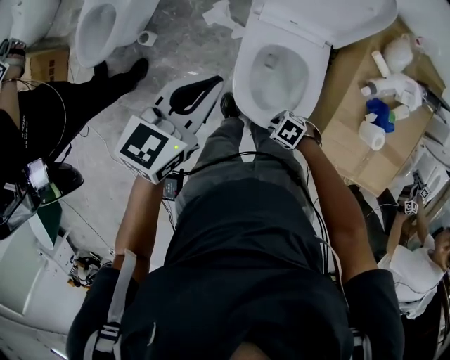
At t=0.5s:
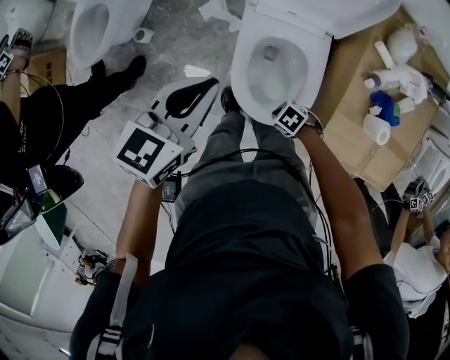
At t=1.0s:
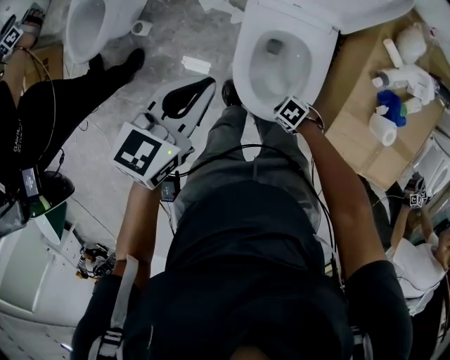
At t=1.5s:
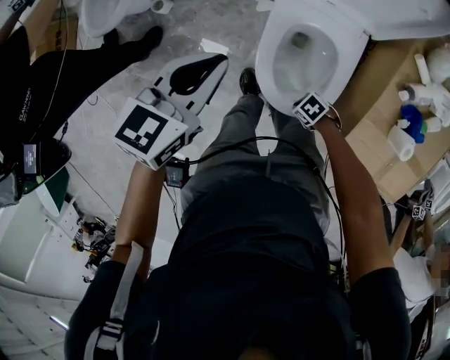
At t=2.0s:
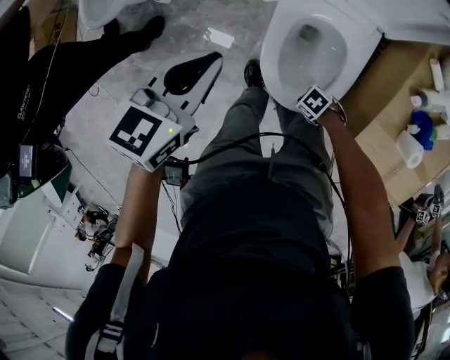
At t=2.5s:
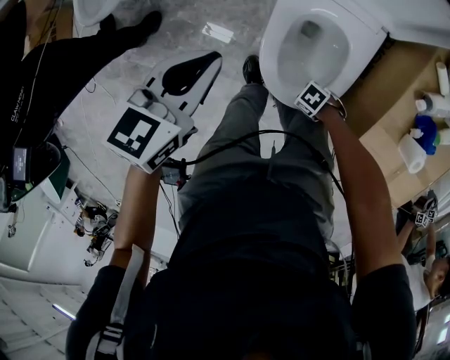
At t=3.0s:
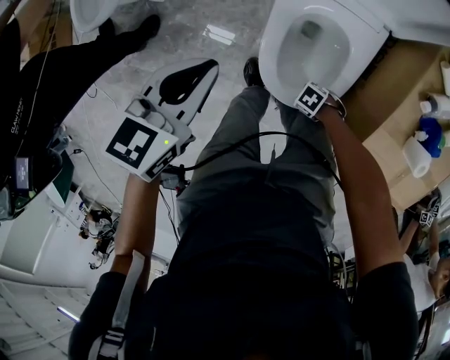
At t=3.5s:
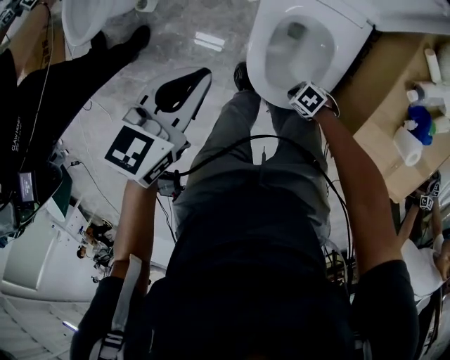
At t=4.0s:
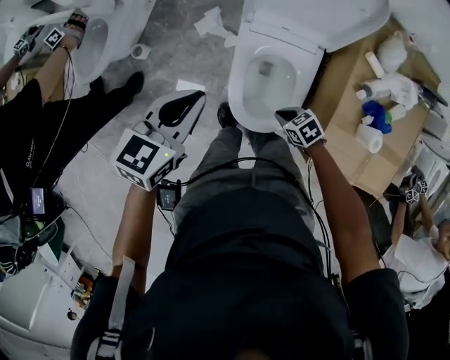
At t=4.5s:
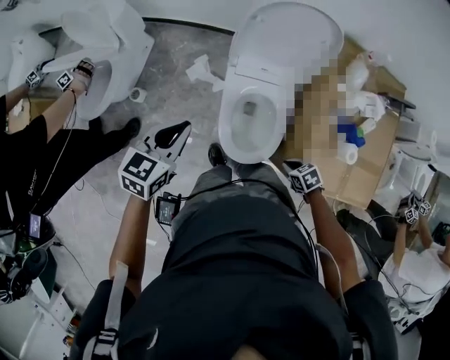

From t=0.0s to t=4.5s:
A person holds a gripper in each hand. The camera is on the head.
From t=0.0s to t=2.0s: The grippers both shift downward by approximately 15 cm. The right gripper closes up.
From t=2.0s to t=4.5s: The left gripper shifts roughly 10 cm upward. Meanwhile the right gripper travels upward by some 20 cm, and turns by approximately 40 degrees.

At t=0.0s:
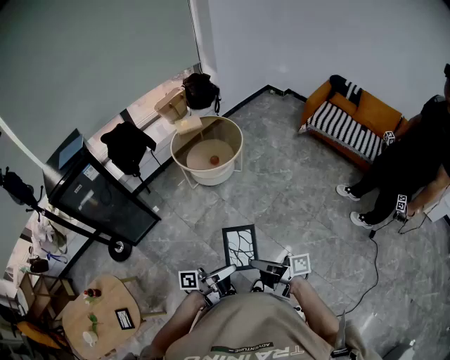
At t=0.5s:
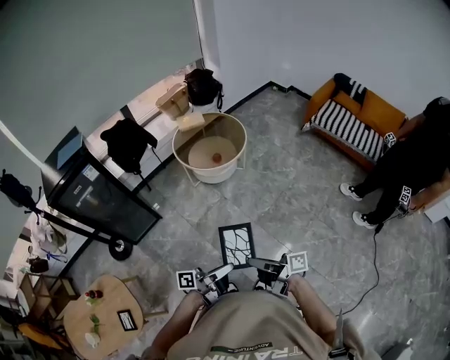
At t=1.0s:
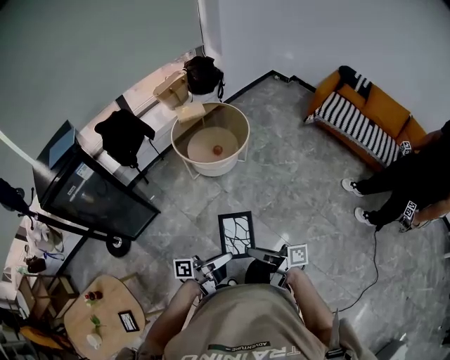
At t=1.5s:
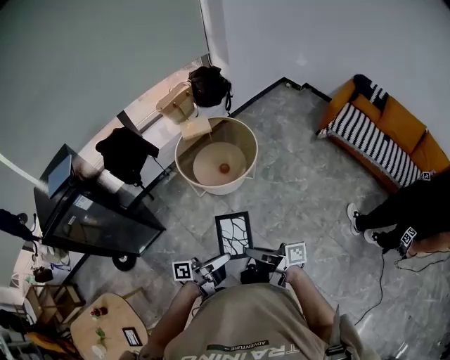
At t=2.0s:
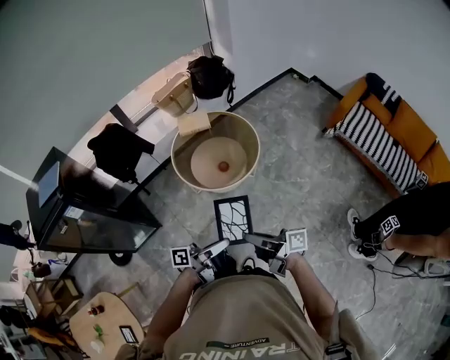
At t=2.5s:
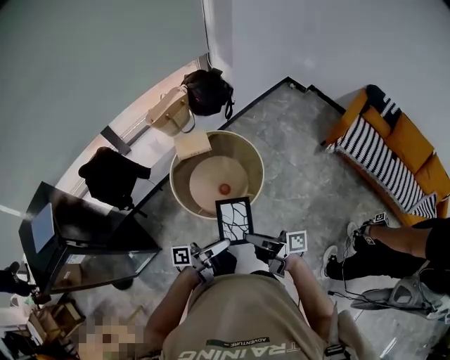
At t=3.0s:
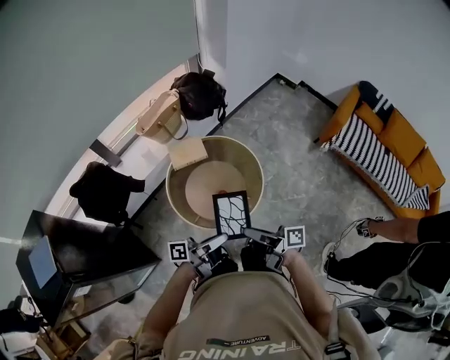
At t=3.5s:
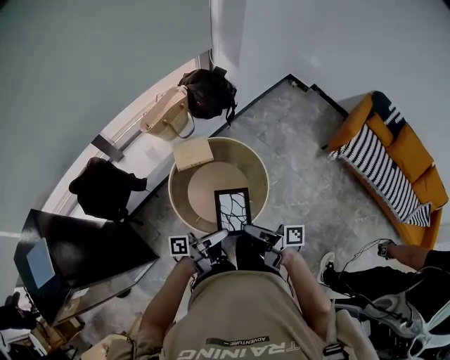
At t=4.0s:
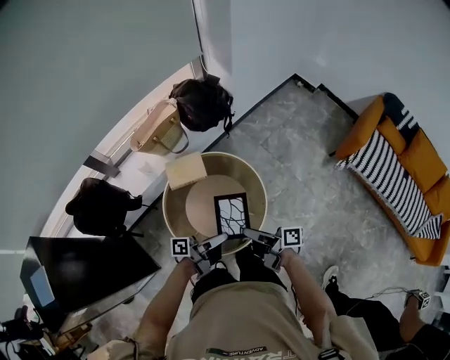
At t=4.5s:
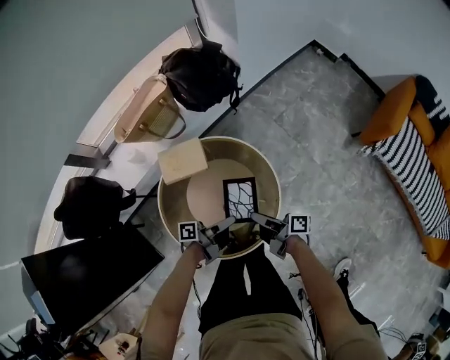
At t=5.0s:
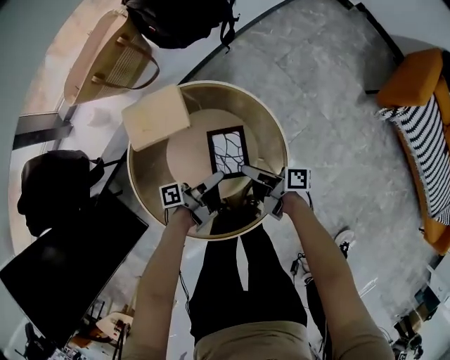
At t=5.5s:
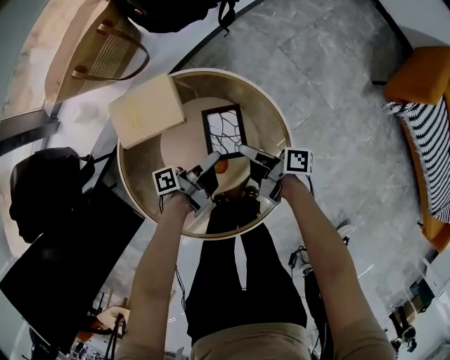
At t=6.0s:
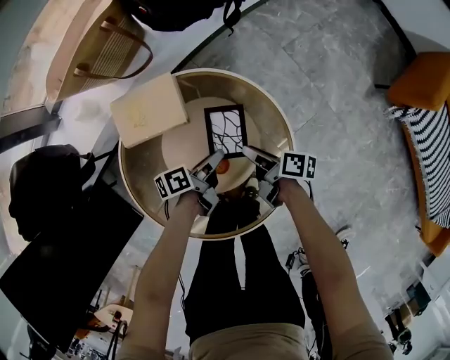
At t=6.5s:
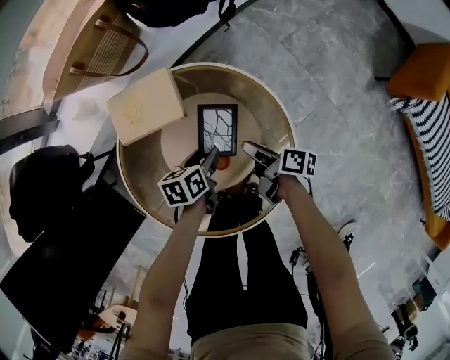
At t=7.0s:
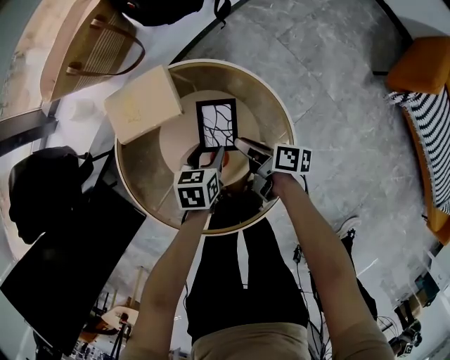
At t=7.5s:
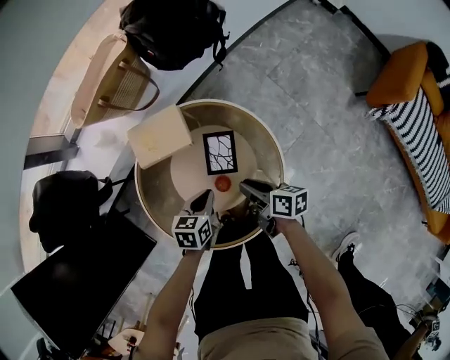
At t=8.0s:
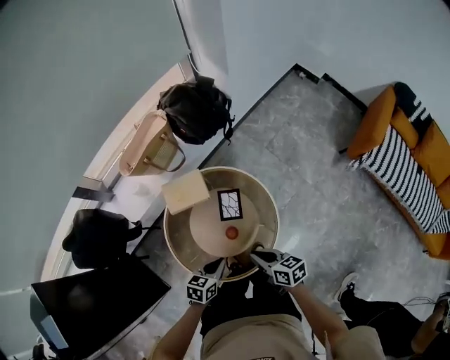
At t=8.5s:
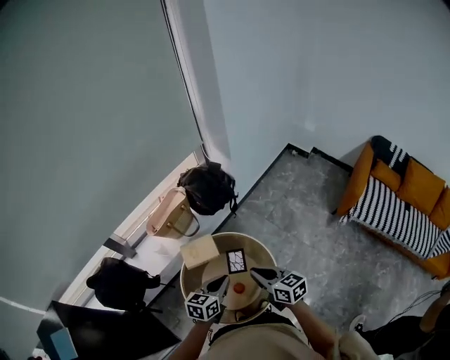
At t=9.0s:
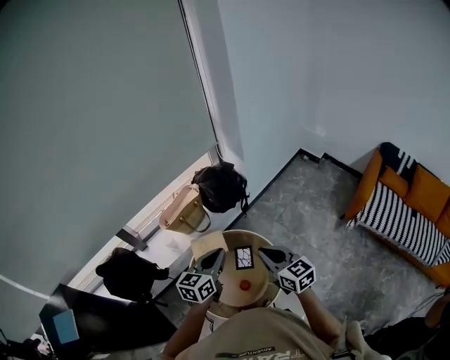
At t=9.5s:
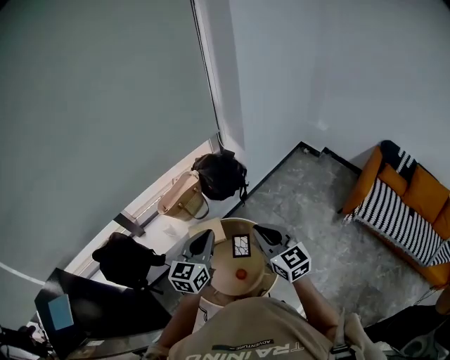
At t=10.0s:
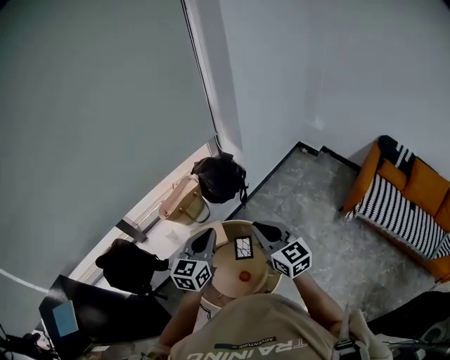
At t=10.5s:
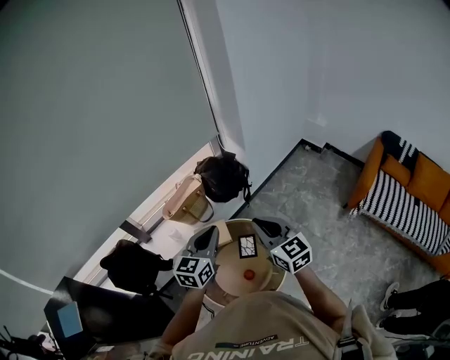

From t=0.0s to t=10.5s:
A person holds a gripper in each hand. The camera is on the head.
From t=0.0s to t=2.0s: The two grippers travel together, forward, roughly 40 cm.
From t=2.0s to t=4.0s: The pair of grippers is taken forward, approximately 40 cm.
From t=4.0s to t=6.5s: Both grippers move downward and forward, approximately 40 cm. The left gripper angles its fingers downward, by approximately 60 degrees, and opens, while the right gripper turns by about 30 degrees.
From t=6.5s to t=8.5s: Both grippers move upward, some 50 cm. The left gripper turns by approximately 40 degrees, and closes. Meanwhile the right gripper rolls counterclockwise, seen from behind, by some 60 degrees.
From t=8.5s to t=10.5s: Both grippers move upward, roughly 15 cm. The right gripper rotates about 30 degrees. The left gripper turns by about 30 degrees.

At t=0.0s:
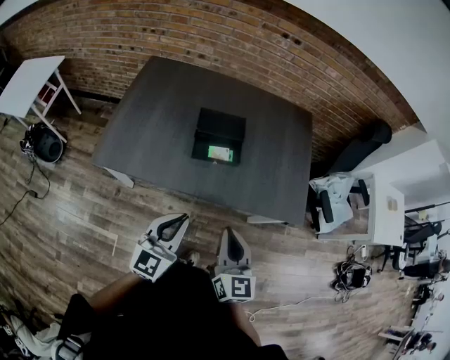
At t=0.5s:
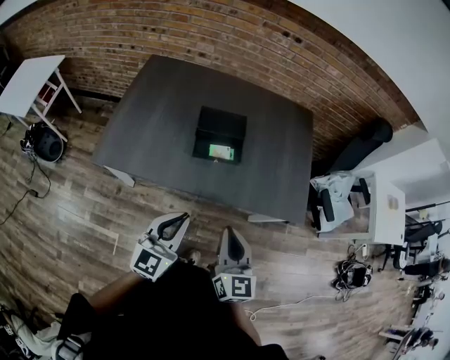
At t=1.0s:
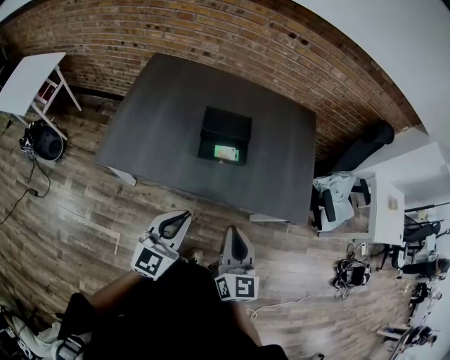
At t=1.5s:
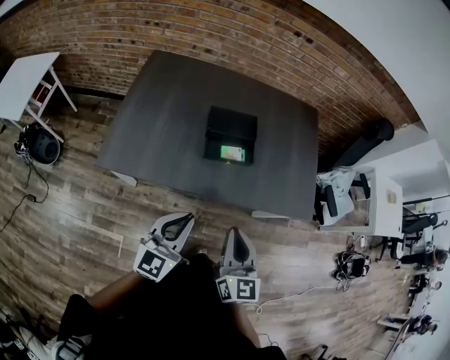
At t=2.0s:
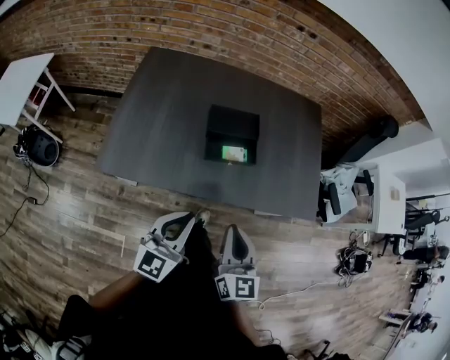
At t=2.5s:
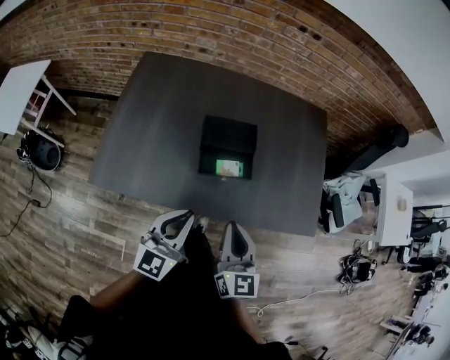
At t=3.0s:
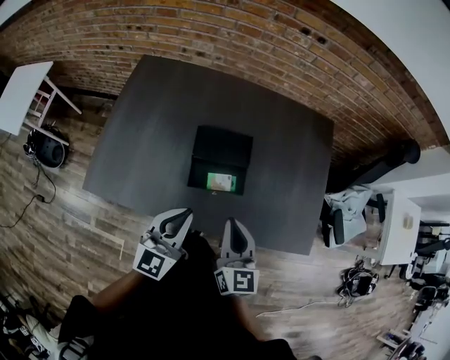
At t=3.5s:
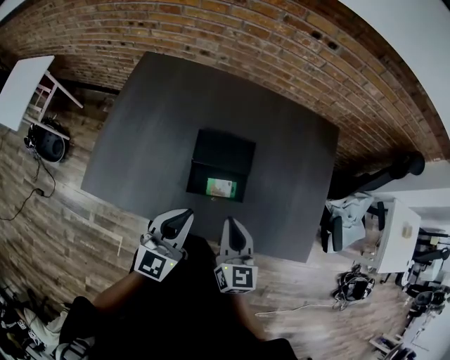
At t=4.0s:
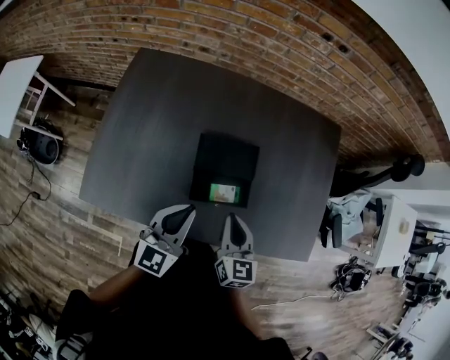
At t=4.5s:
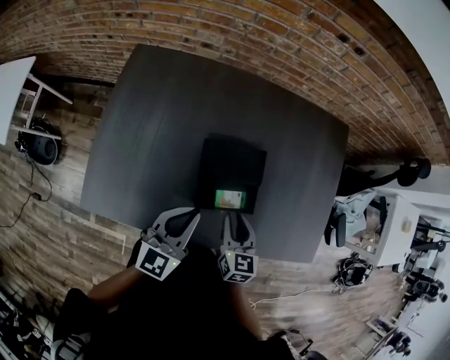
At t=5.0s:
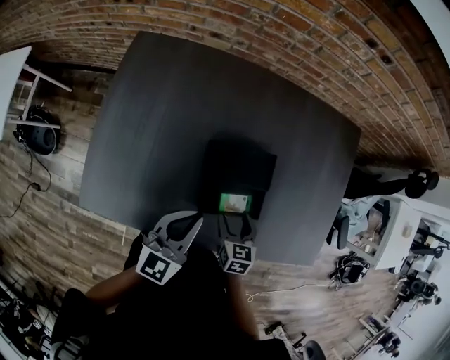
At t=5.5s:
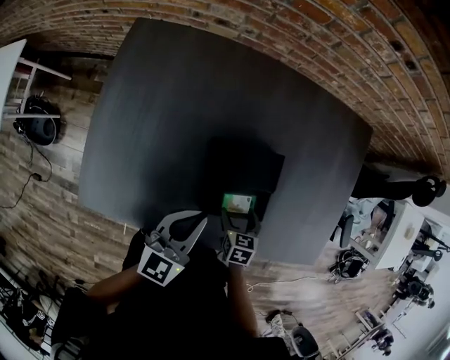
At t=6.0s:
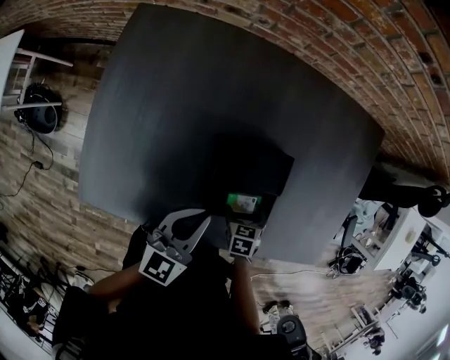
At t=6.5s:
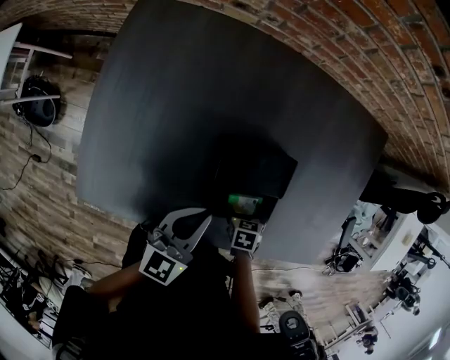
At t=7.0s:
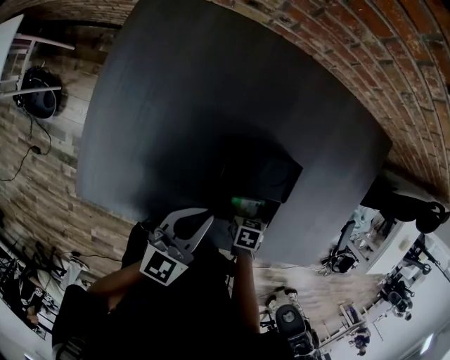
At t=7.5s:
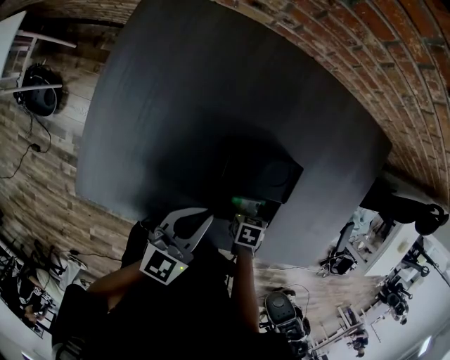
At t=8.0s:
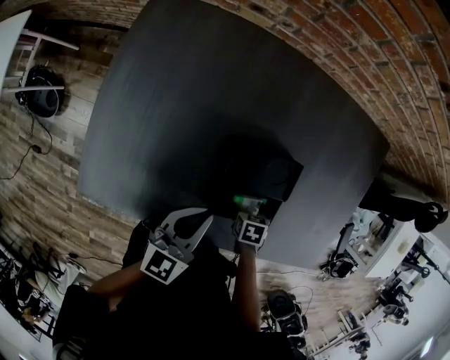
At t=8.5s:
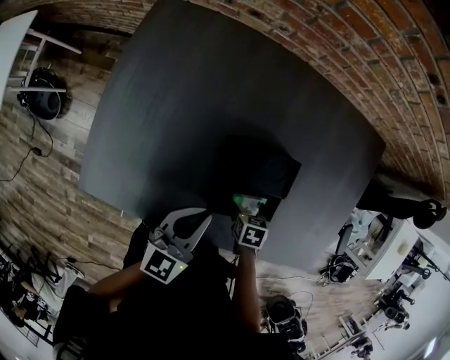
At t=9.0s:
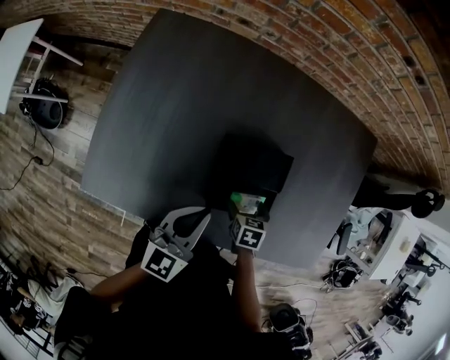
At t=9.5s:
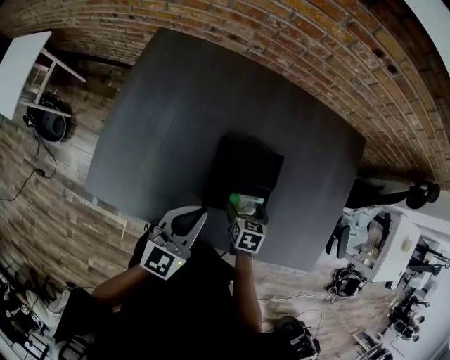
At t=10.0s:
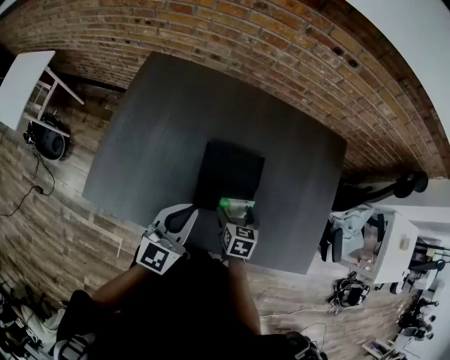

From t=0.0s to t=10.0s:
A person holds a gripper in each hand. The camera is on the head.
From t=0.0s to t=2.0s: The two grippers go some 10 cm to the left.
From t=2.0s to t=4.0s: The two grippers go roughly 25 cm forward.
From t=4.0s to t=6.0s: The left gripper moves forward and downward, about 15 cm. Meanwhile the right gripper heads downward, covering some 25 cm, angles its fingers downward, by about 50 degrees, and opens its fingers.
From t=6.0s to t=8.0s: There are only small adjustments of the grippers.
From t=8.0s to t=10.0s: Both grippers move upward, roughly 15 cm. The right gripper angles its fingers upward, by about 30 degrees.

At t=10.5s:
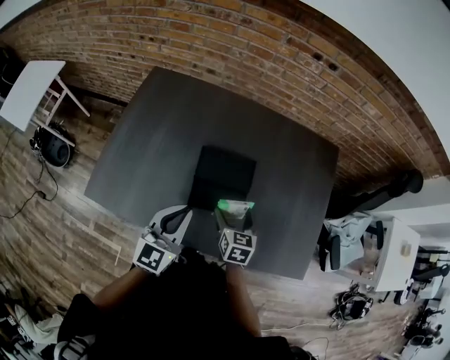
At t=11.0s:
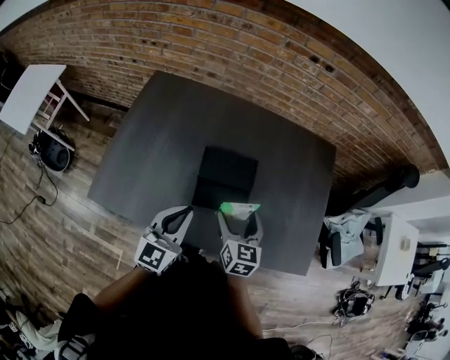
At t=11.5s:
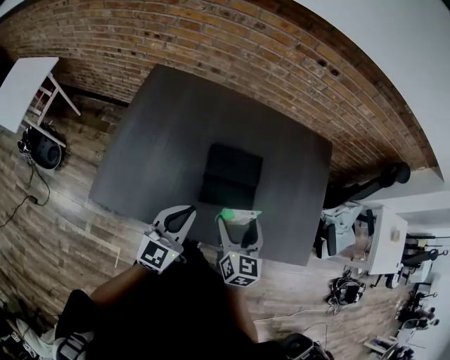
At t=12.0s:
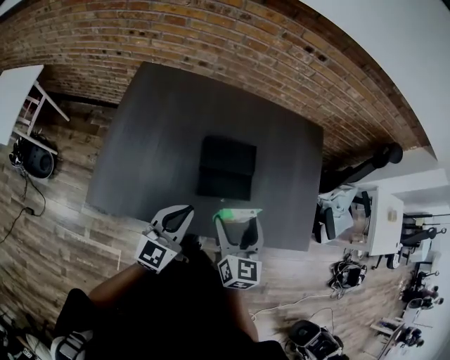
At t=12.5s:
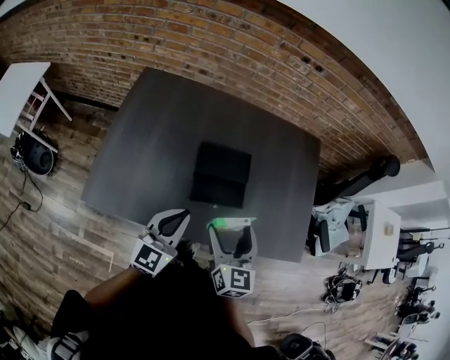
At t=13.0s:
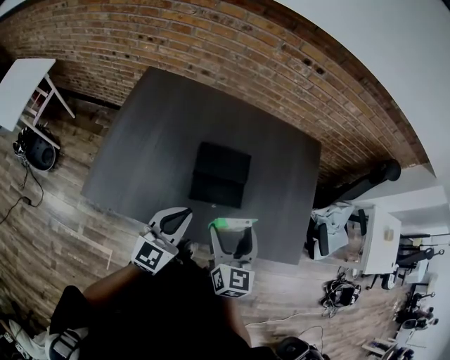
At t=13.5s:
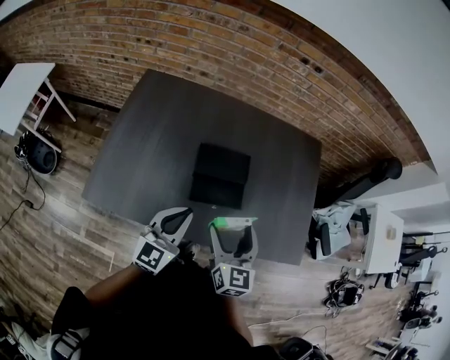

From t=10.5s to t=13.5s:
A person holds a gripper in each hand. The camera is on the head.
From t=10.5s to t=12.0s: The right gripper travels upward, backward and to the left by roughly 20 cm, and swivels roughly 20 degrees. The left gripper shifts roughly 10 cm to the left and backward.
From t=12.0s to t=13.5s: The grippers move only a little.
